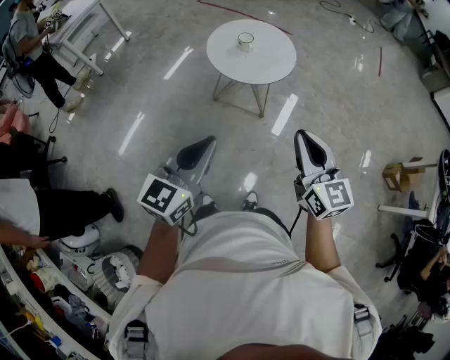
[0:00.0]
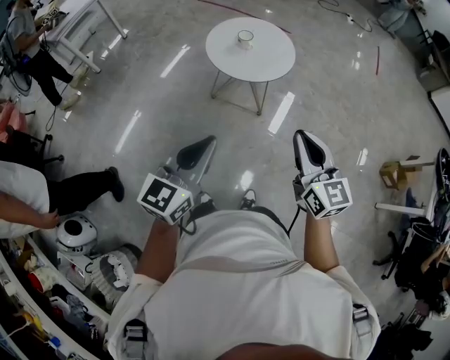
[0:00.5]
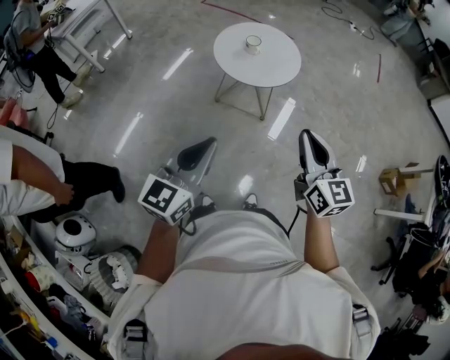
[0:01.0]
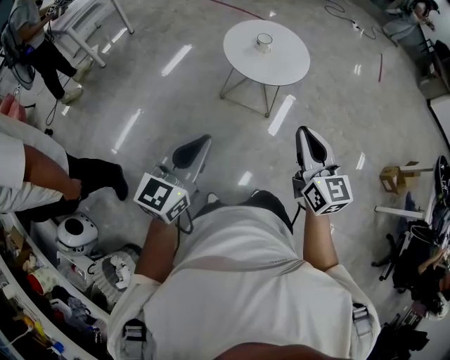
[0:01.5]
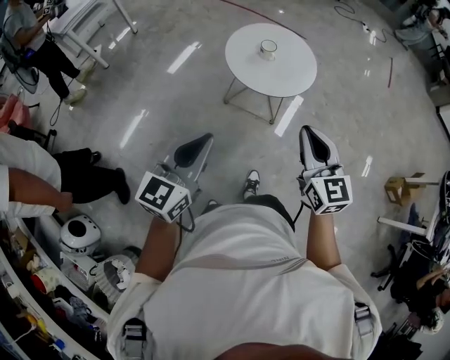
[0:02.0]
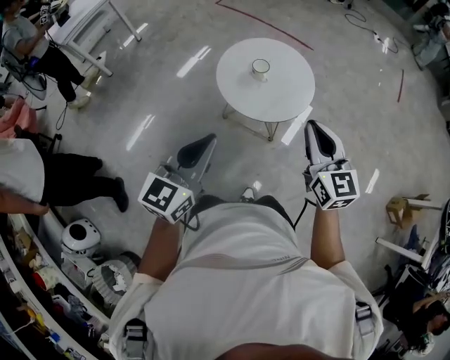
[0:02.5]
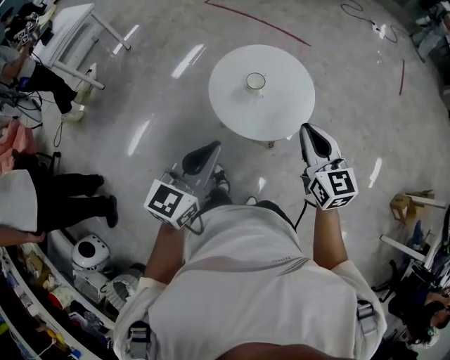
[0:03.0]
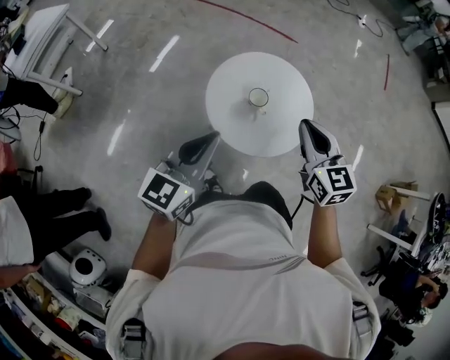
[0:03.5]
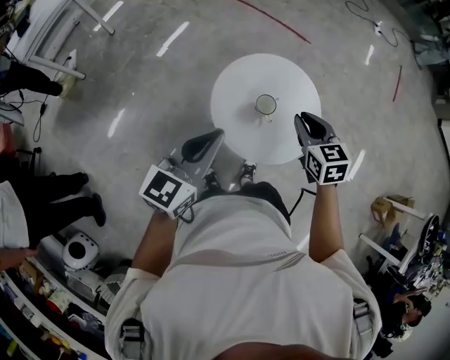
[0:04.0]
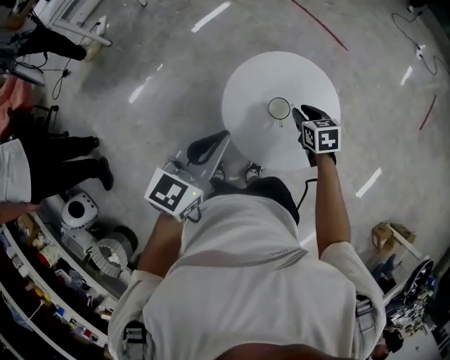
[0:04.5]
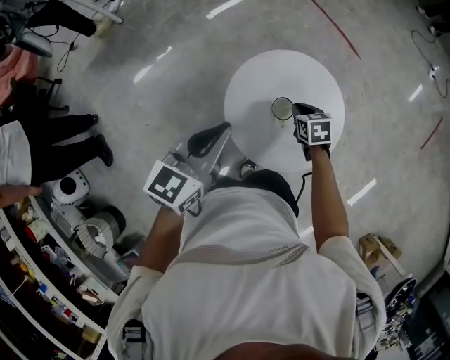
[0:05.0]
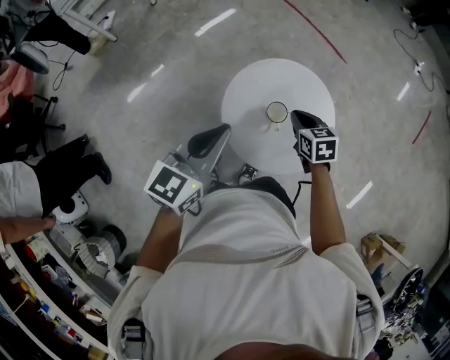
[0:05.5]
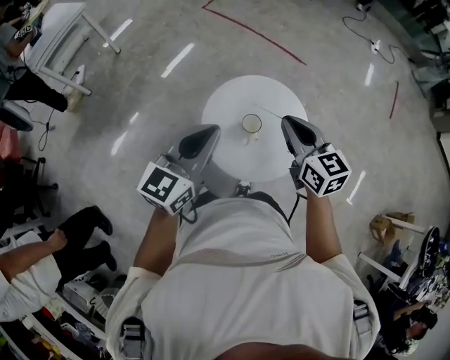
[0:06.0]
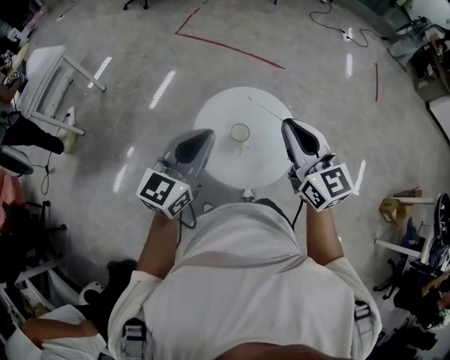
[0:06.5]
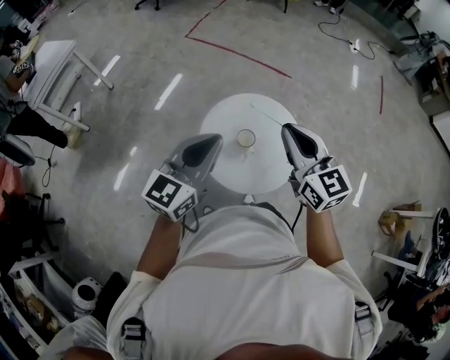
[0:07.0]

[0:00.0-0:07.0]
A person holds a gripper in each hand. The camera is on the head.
0:00.0 to 0:02.0: The left gripper is displaced to the left and forward by approximately 15 cm. Meanwhile the right gripper travels forward and to the left by approximately 15 cm.
0:02.0 to 0:03.5: Both grippers are carried forward, roughly 40 cm.
0:03.5 to 0:05.0: The left gripper moves some 15 cm, and changes its angle by approximately 20 degrees. The right gripper heads downward, covering approximately 30 cm, points its fingers approximately 40 degrees further downward, and opens and closes again.
0:05.0 to 0:07.0: The right gripper travels upward and backward by roughly 40 cm, and points its fingers some 50 degrees further upward; the left gripper goes about 15 cm upward, and changes its angle by roughly 30 degrees.

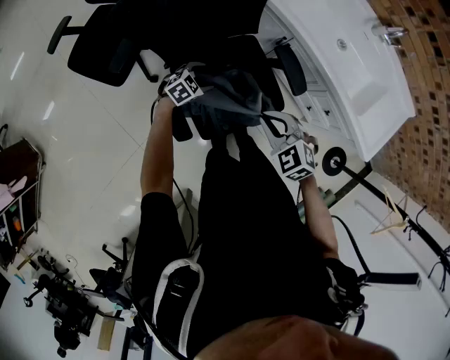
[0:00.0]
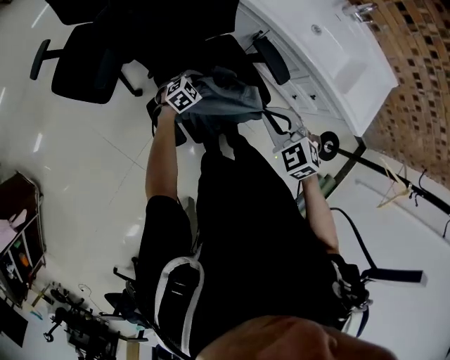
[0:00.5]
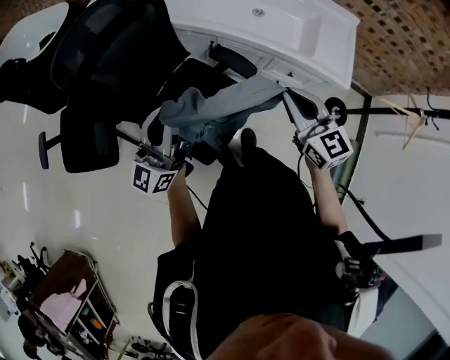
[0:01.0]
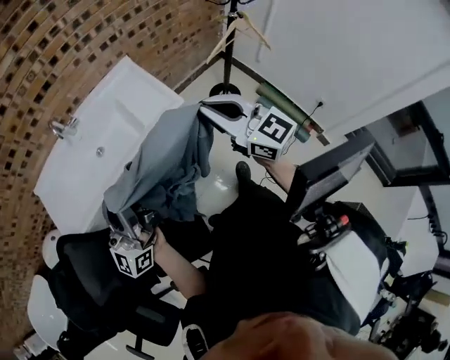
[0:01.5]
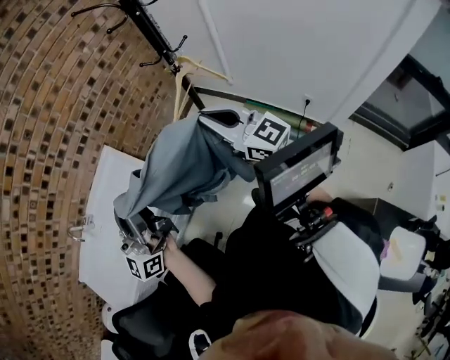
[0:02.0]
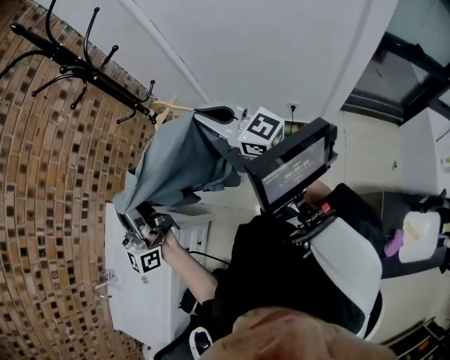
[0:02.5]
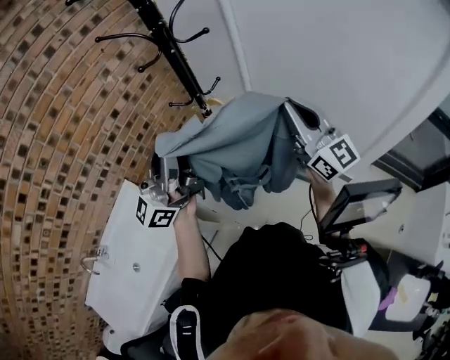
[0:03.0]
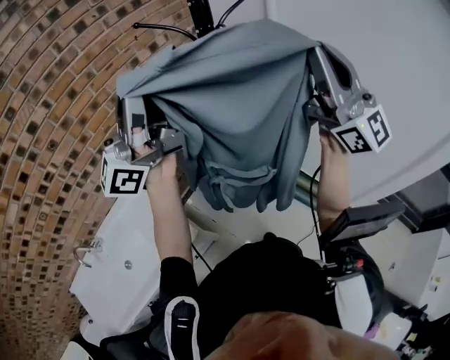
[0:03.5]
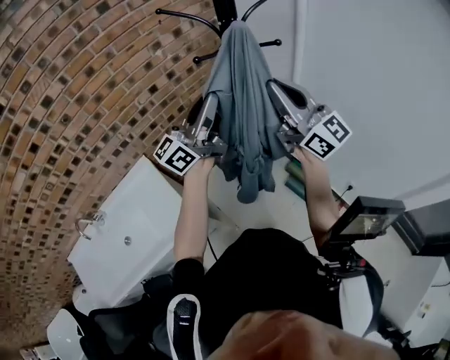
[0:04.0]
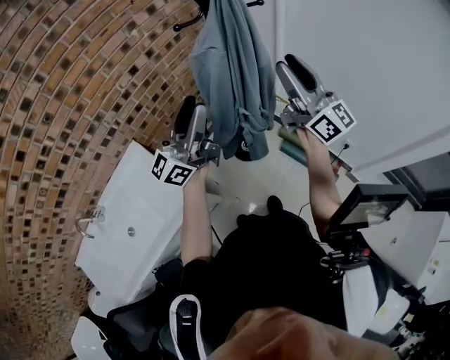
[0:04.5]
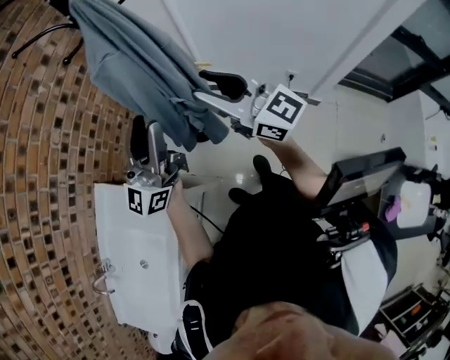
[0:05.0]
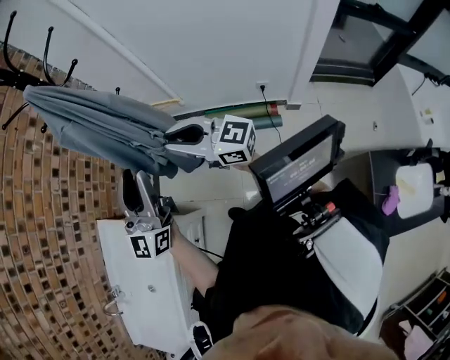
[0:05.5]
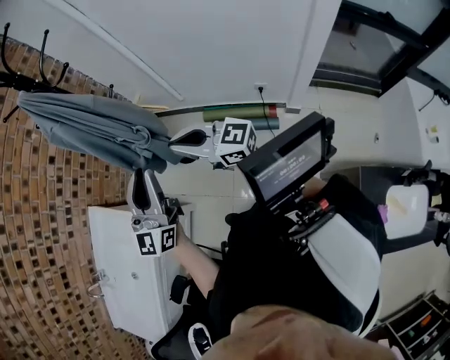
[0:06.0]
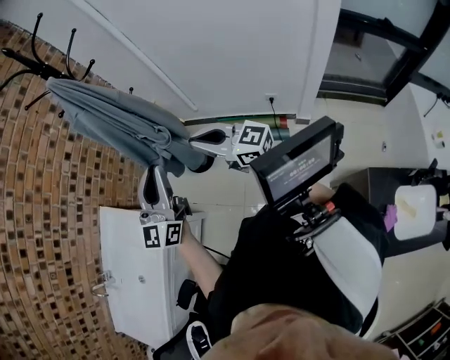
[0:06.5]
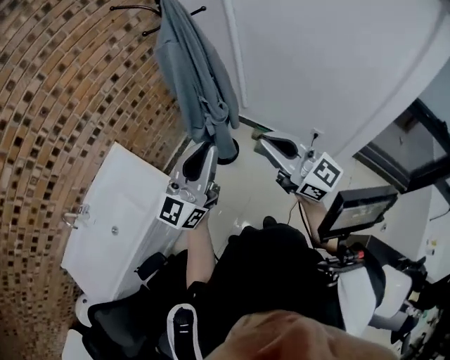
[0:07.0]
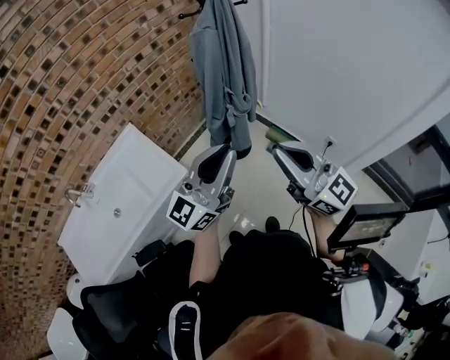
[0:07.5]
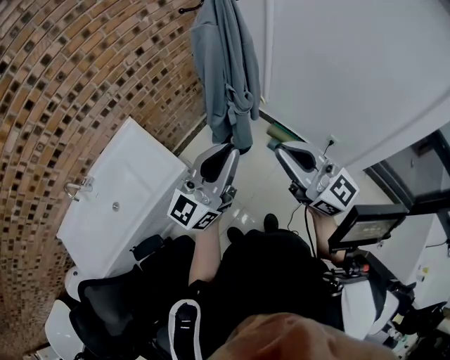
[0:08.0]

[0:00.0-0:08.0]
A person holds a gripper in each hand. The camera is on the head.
0:00.0 to 0:02.0: The pair of grippers is taken approximately 70 cm. The right gripper tilts its fingers roughly 60 degrees upward. The left gripper tips its fingers upward by roughly 80 degrees, and closes.
0:02.0 to 0:04.0: The right gripper travels forward and upward by roughly 30 cm. Meanwhile the left gripper goes approximately 40 cm forward, and rotates roughly 20 degrees.
0:04.0 to 0:06.0: The right gripper shifts about 35 cm backward, downward and to the right, and opens and closes again. The left gripper shifts roughly 35 cm backward and to the right, and turns by some 30 degrees.
0:06.0 to 0:08.0: The left gripper shifts about 10 cm to the left and backward, while the right gripper shifts some 15 cm upward, backward and to the left.

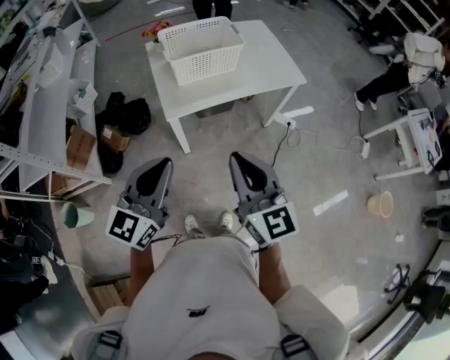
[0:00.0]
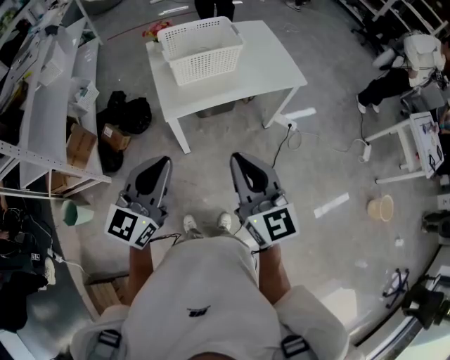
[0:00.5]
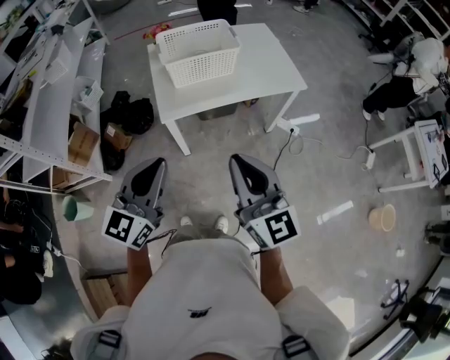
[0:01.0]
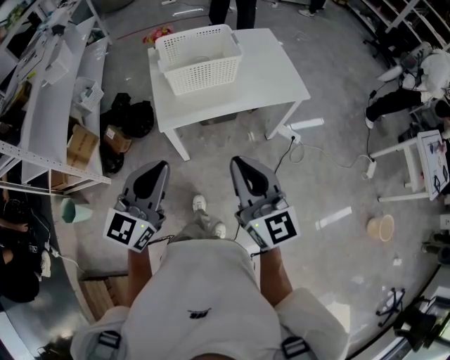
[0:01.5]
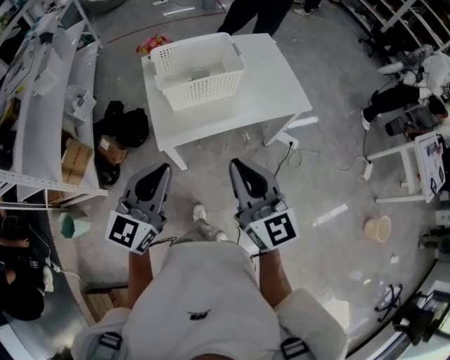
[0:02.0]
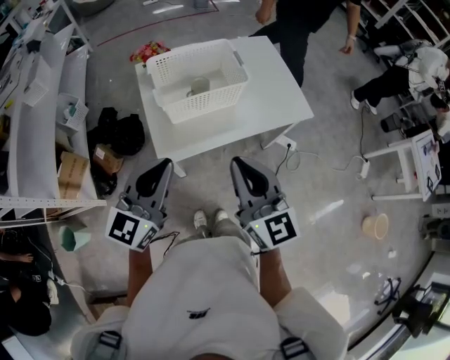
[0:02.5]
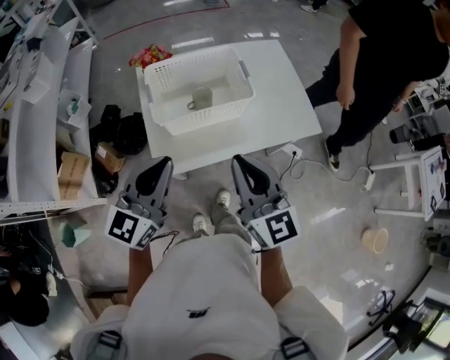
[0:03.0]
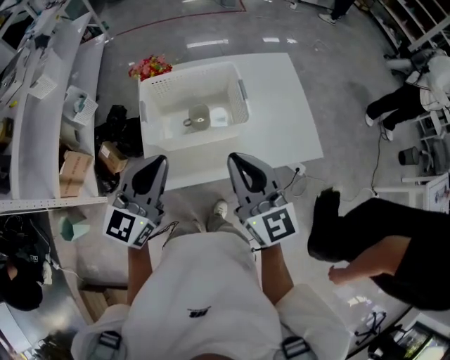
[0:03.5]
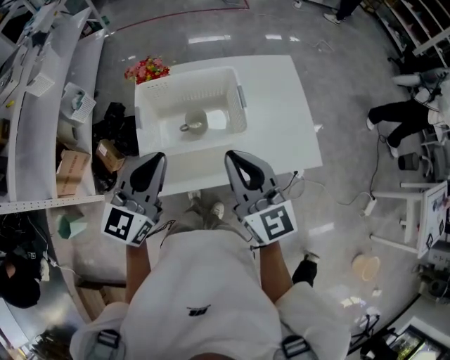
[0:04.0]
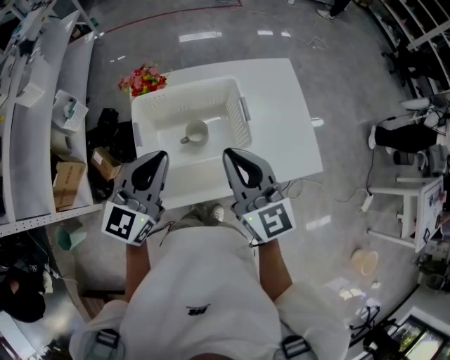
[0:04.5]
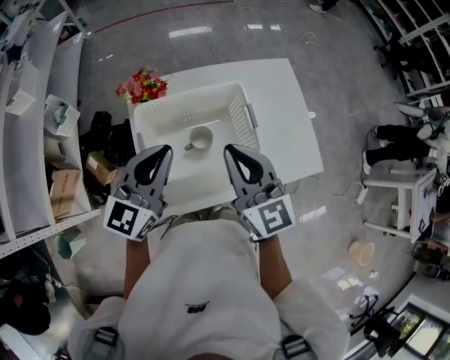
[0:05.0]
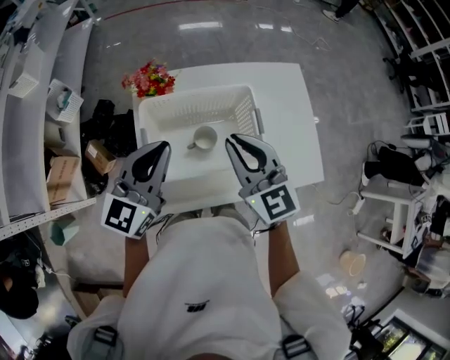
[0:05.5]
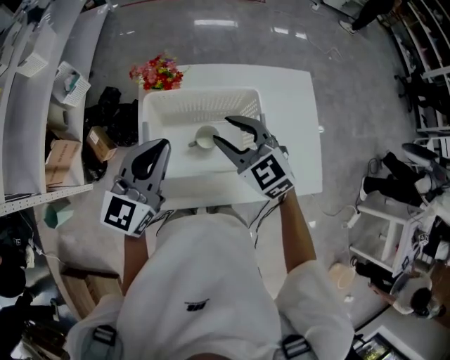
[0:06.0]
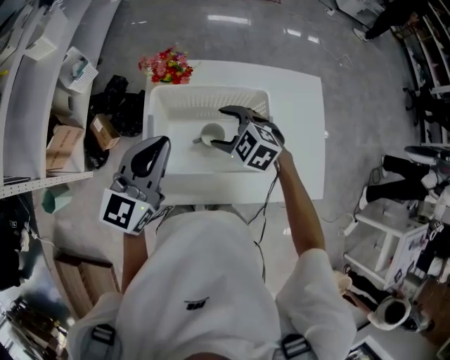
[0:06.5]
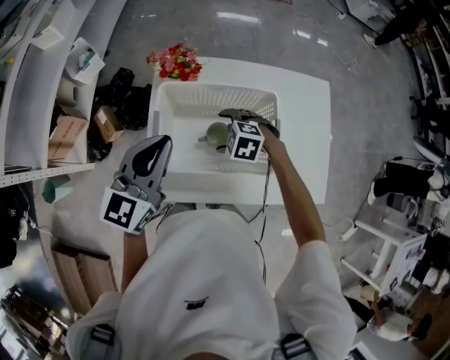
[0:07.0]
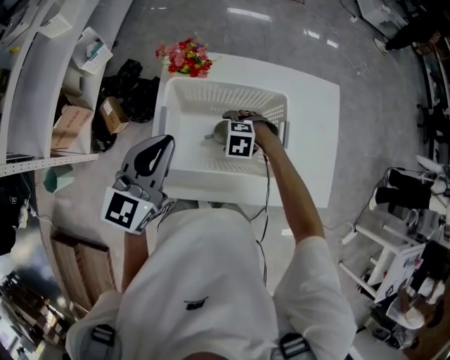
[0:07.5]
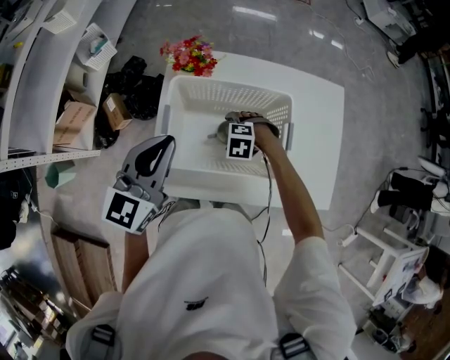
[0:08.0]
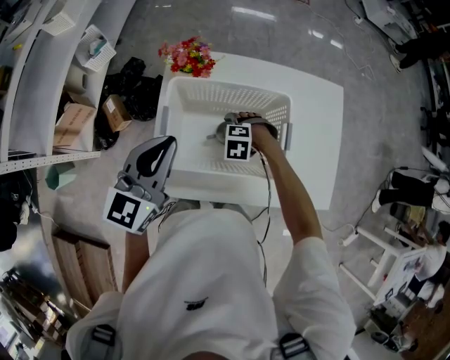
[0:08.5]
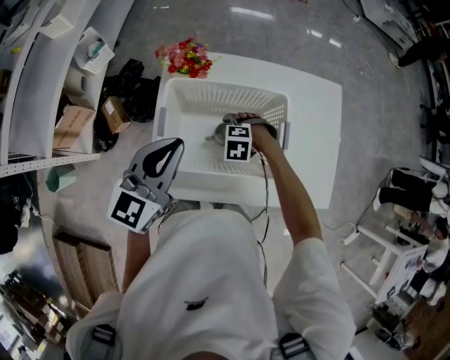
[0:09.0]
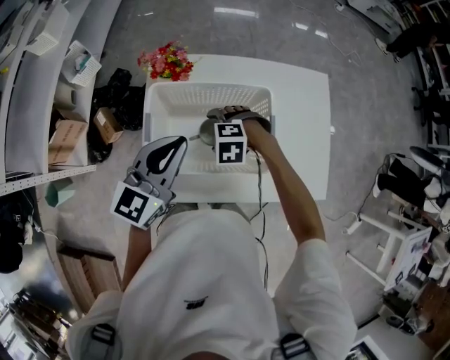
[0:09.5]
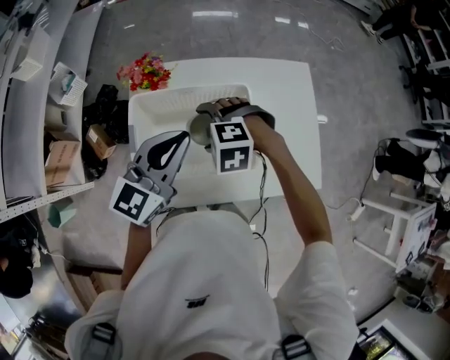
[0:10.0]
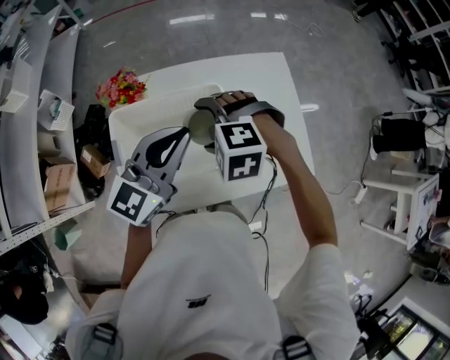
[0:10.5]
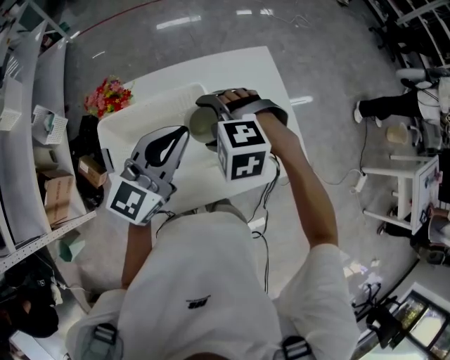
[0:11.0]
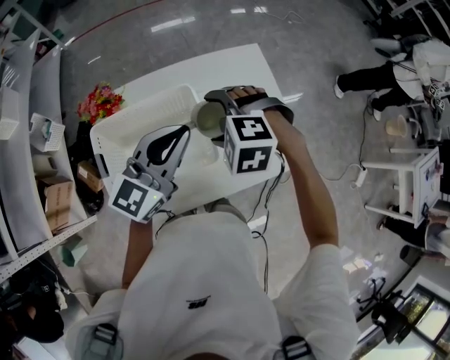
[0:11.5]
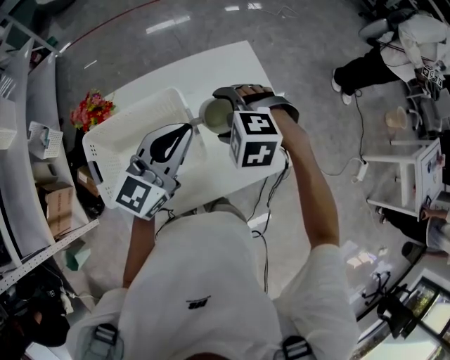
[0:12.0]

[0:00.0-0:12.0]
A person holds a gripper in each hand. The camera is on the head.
0:00.0 to 0:02.0: The grippers both shift forward by some 15 cm.
0:02.0 to 0:04.0: Both grippers move forward, some 30 cm.
0:04.0 to 0:06.0: The right gripper travels forward, downward and to the left by approximately 20 cm, angles its fingers downward, by approximately 30 degrees, and opens. Meanwhile the left gripper moves forward, roughly 15 cm.
0:06.0 to 0:08.0: The right gripper travels downward by some 25 cm, angles its fingers downward, by about 50 degrees, and opens.
0:08.0 to 0:10.0: The right gripper heads upward, covering roughly 20 cm. The left gripper moves some 10 cm.
0:10.0 to 0:12.0: Both grippers move to the right, about 20 cm. The right gripper turns by about 20 degrees.
